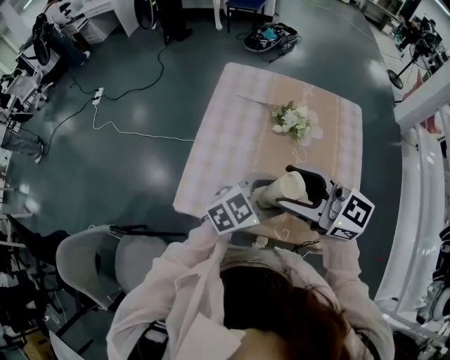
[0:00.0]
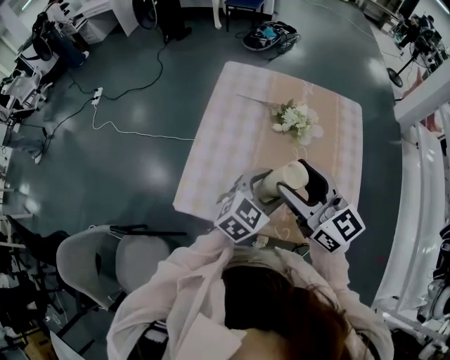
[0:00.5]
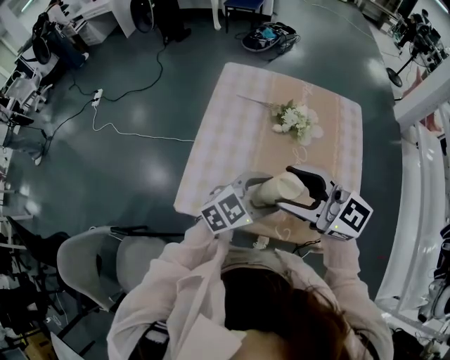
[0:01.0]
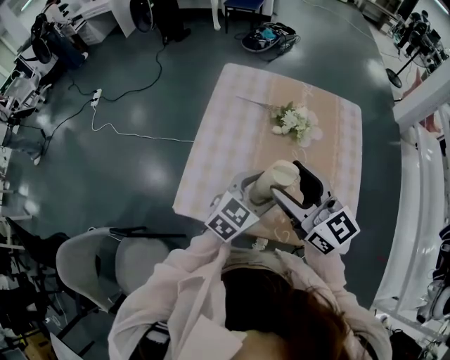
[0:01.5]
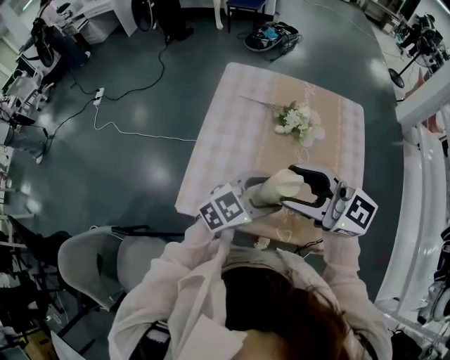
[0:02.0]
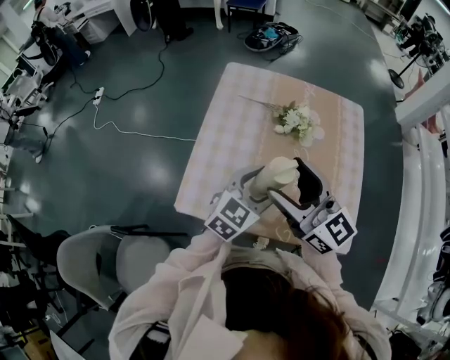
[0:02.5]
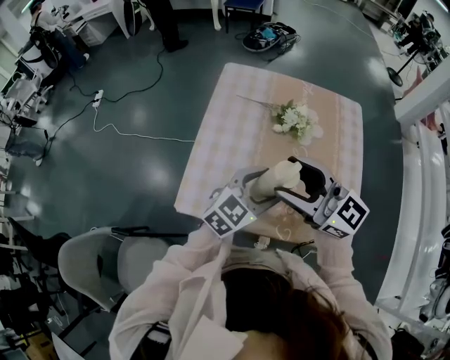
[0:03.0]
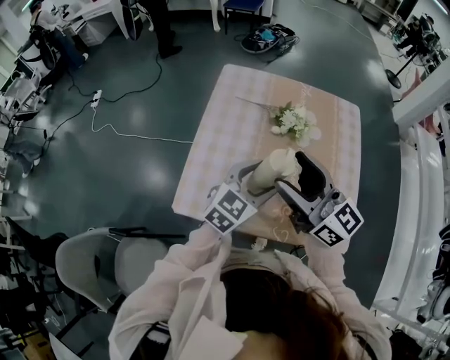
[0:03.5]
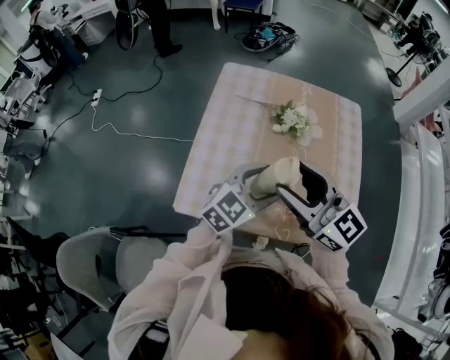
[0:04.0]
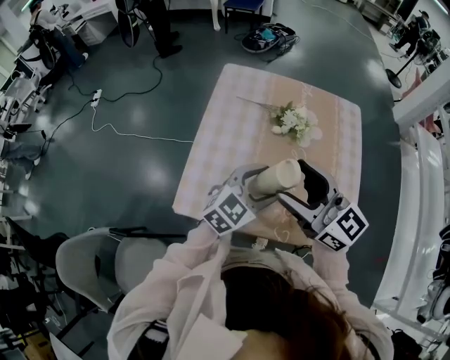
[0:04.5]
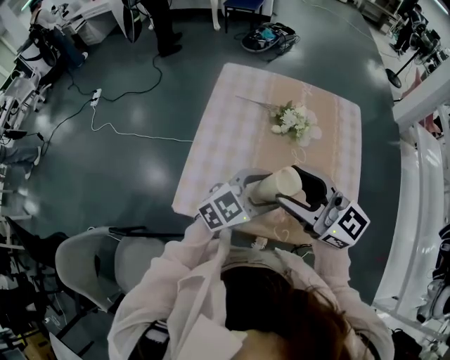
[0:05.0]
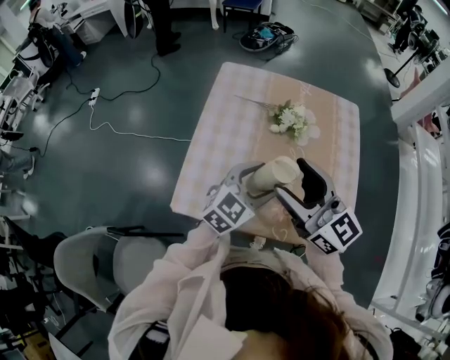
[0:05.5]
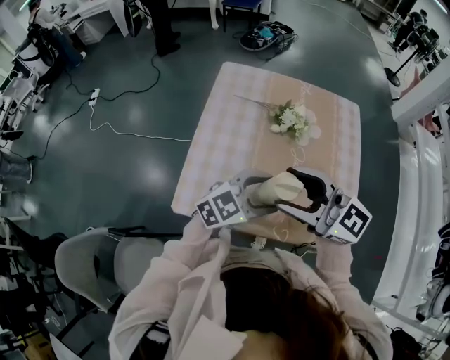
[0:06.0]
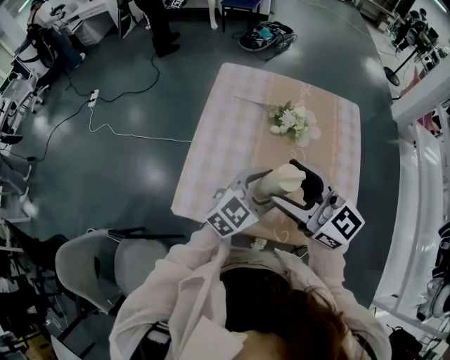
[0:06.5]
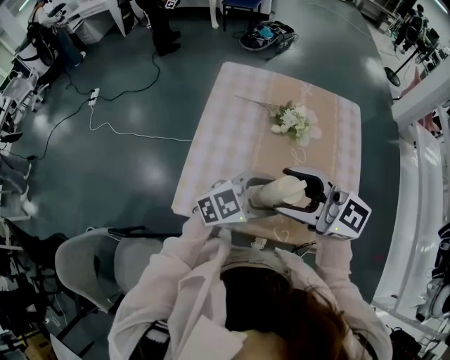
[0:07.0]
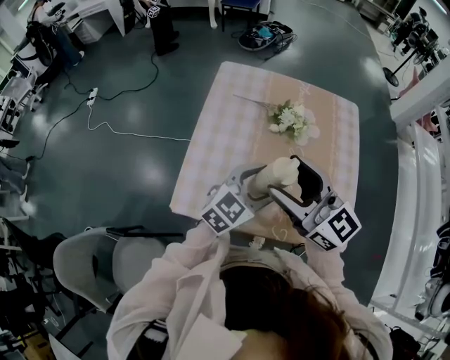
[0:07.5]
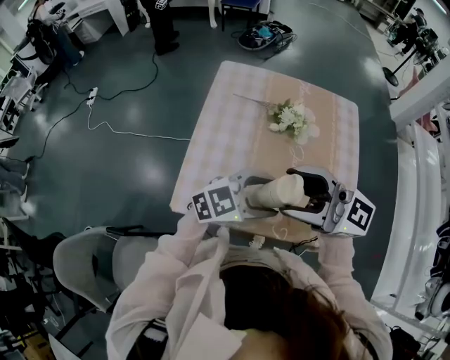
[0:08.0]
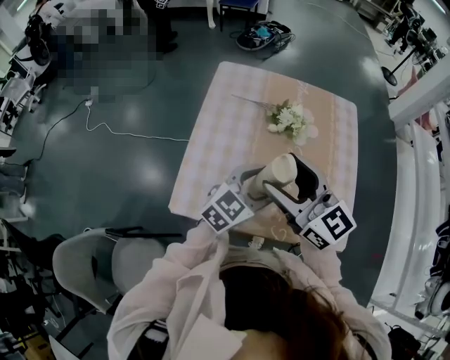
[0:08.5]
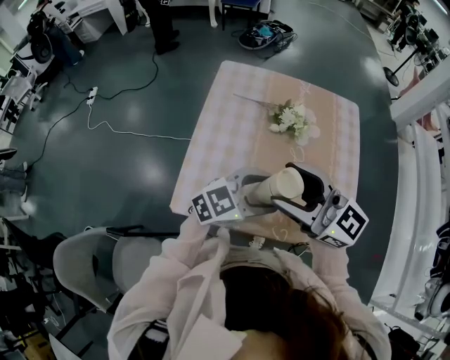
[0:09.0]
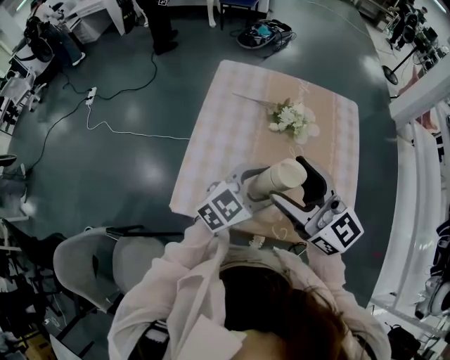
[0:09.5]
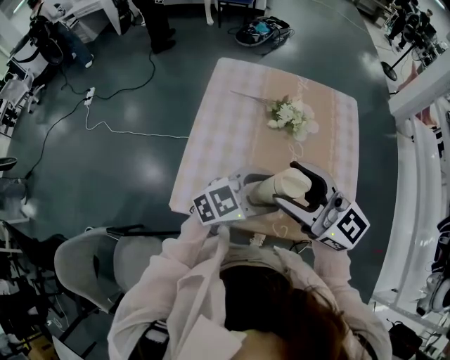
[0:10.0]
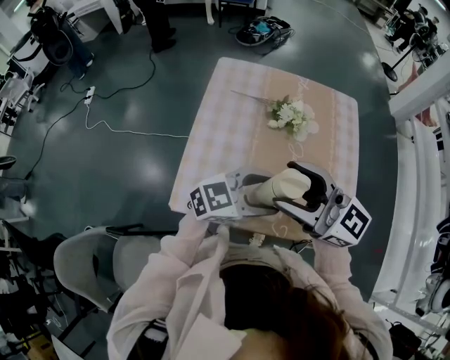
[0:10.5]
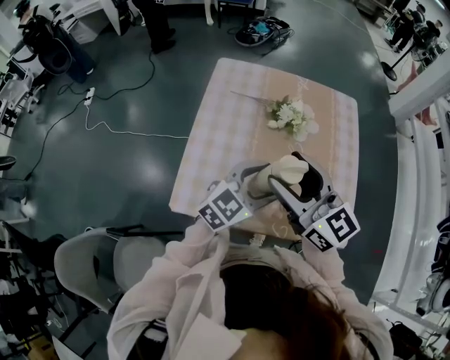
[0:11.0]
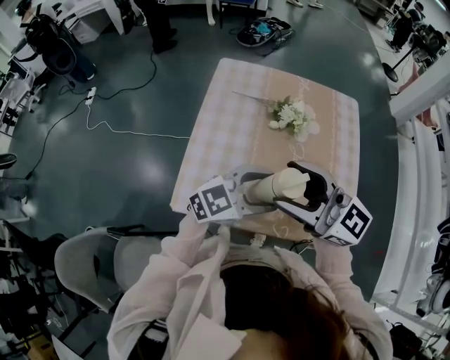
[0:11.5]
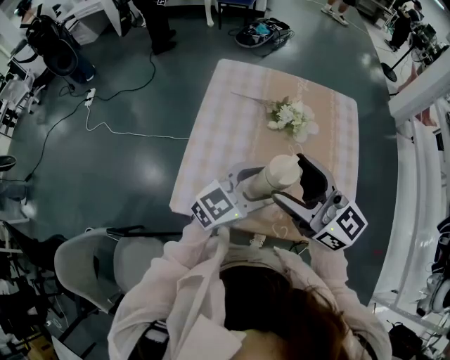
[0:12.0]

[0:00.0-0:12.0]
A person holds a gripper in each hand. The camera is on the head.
0:02.0 to 0:04.0: The right gripper changes its angle by about 20 degrees.
0:04.0 to 0:06.0: The grippers make only small movements.
0:06.0 to 0:08.0: The grippers stay close to where they were, moving slightly.
0:10.0 to 0:12.0: The grippers move only a little.

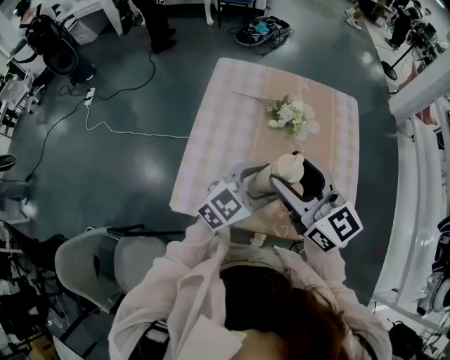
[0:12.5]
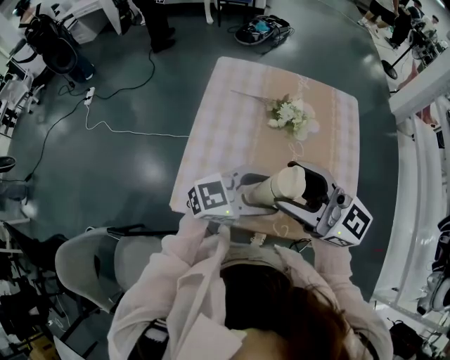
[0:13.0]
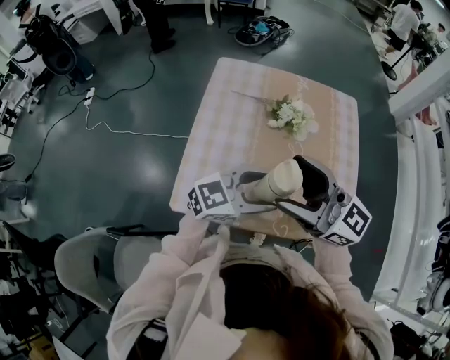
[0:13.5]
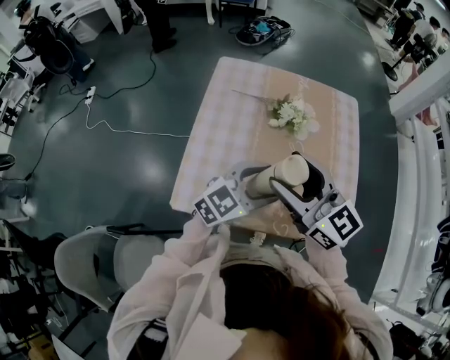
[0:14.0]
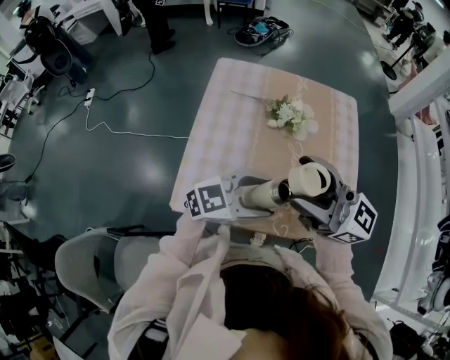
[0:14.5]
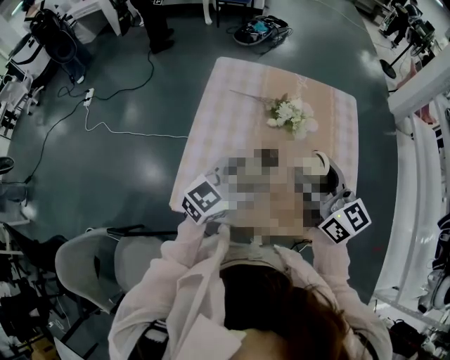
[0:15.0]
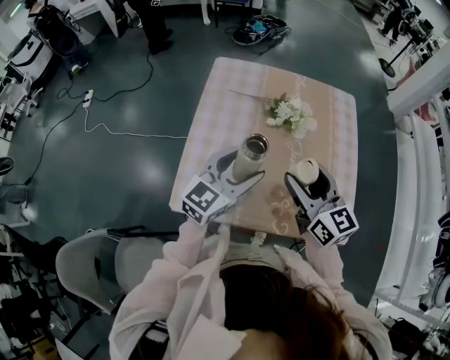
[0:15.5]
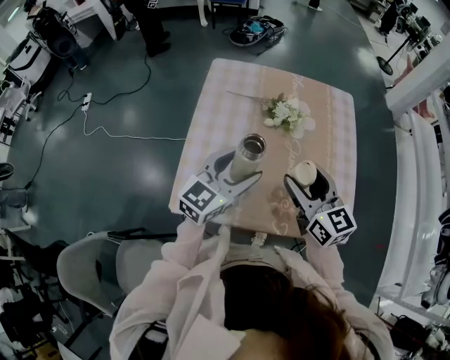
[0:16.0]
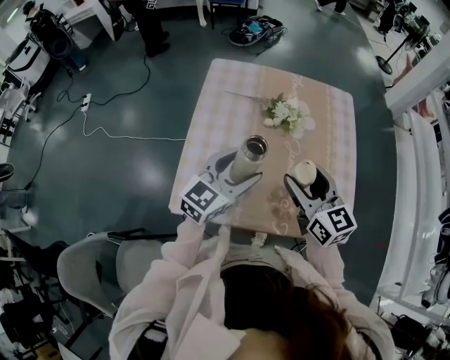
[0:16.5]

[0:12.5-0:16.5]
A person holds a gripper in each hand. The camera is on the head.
0:12.5 to 0:14.5: The left gripper changes place by approximately 5 cm, and turns by approximately 20 degrees. The right gripper shifts by approximately 5 cm, and turns by approximately 30 degrees.
0:14.5 to 0:16.5: The left gripper shifts by some 10 cm, and turns by roughly 30 degrees. The right gripper heads downward, covering roughly 15 cm, and swivels about 40 degrees.

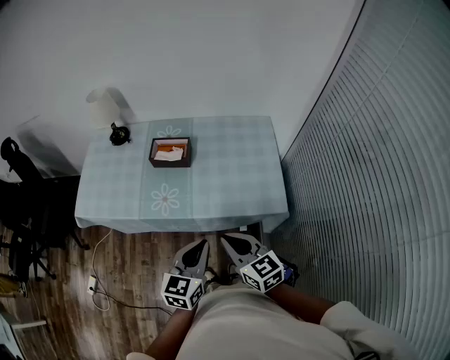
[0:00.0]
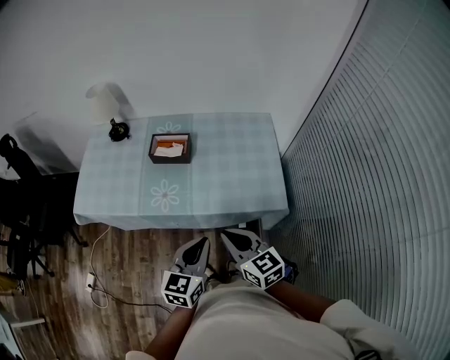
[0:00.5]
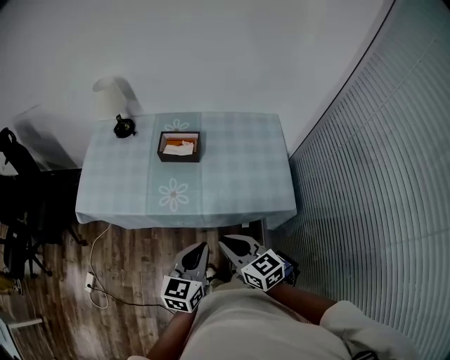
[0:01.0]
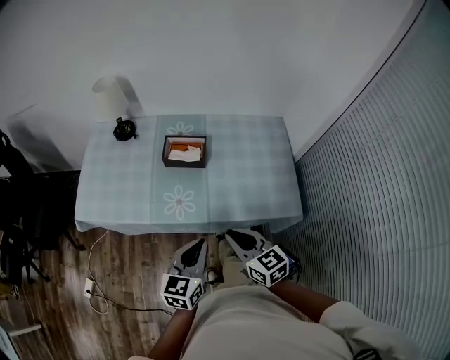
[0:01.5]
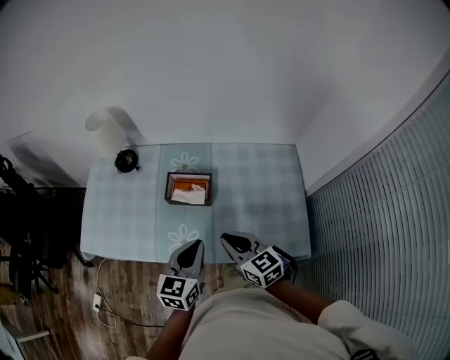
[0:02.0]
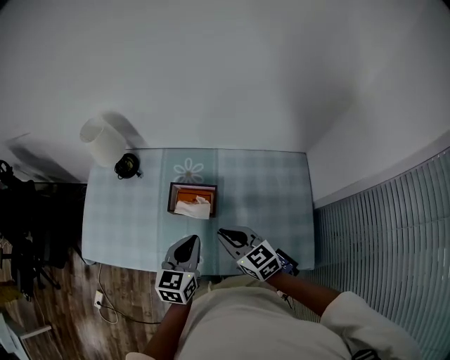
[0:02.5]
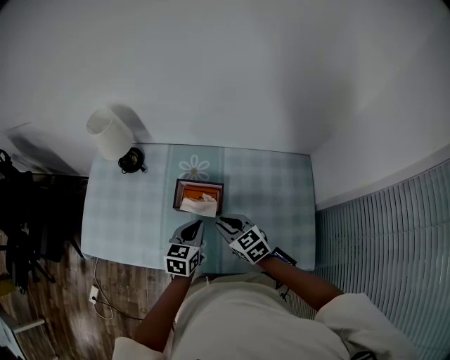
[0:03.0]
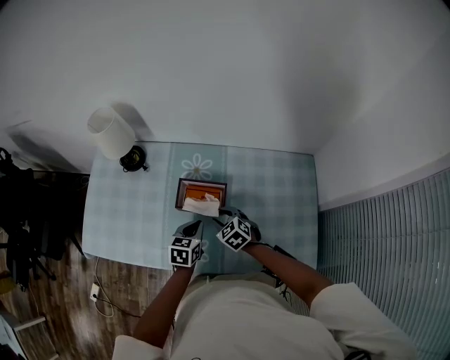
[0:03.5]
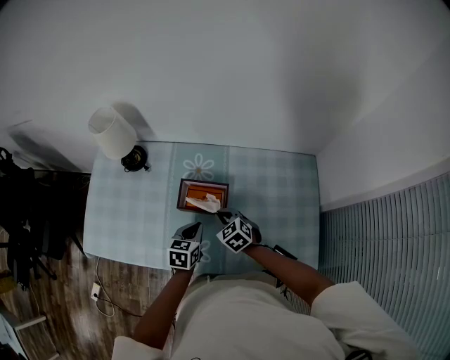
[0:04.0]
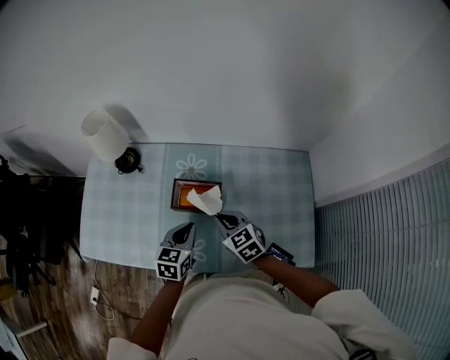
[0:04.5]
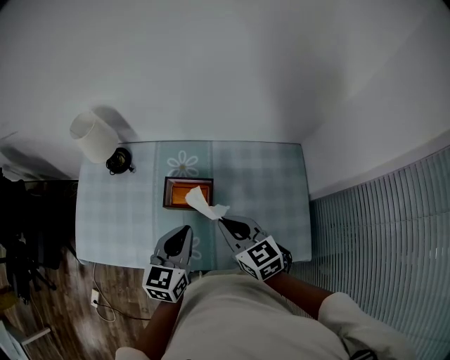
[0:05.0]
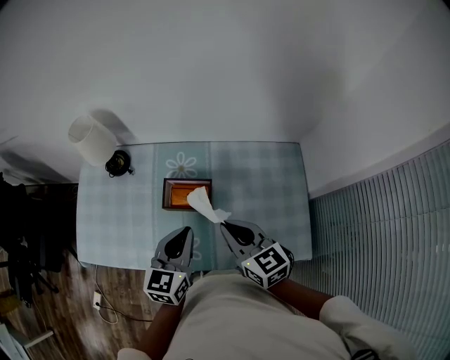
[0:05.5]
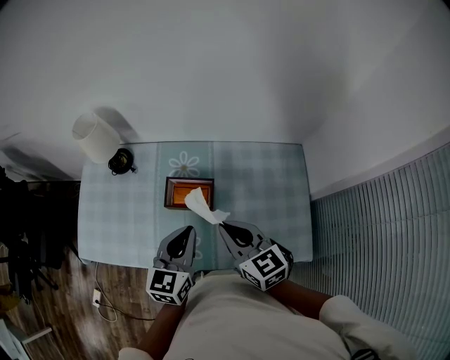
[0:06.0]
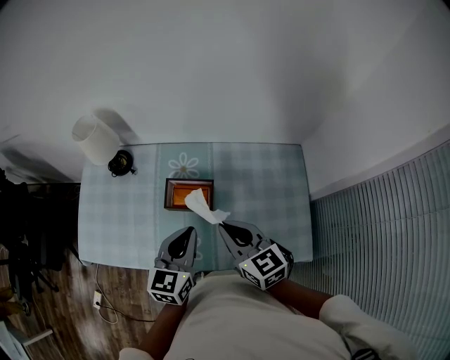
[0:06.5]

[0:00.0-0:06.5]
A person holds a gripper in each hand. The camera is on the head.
0:00.0 to 0:02.0: Both grippers travel together forward, approximately 25 cm.
0:02.0 to 0:04.5: Both grippers travel together forward and downward, roughly 15 cm. The right gripper changes its angle by some 20 degrees, and opens and closes again.
0:04.5 to 0:06.5: Both grippers travel together upward, approximately 15 cm. The right gripper rotates roughly 20 degrees.

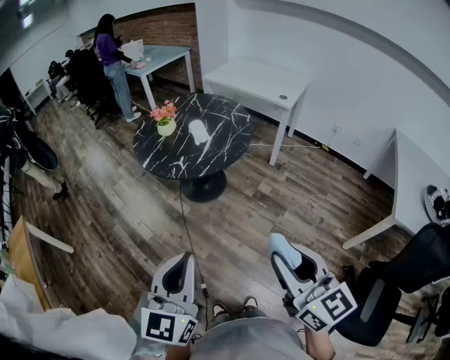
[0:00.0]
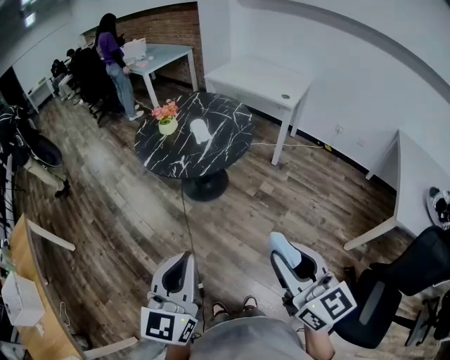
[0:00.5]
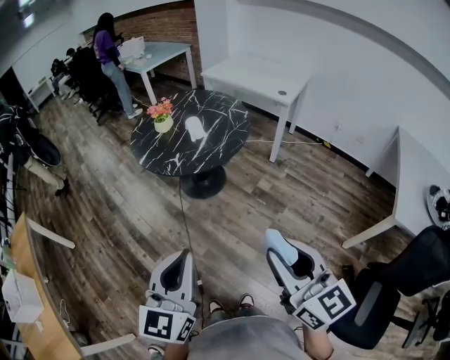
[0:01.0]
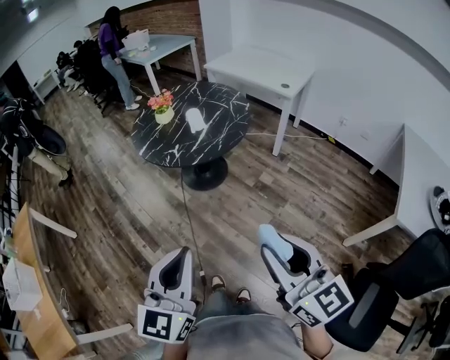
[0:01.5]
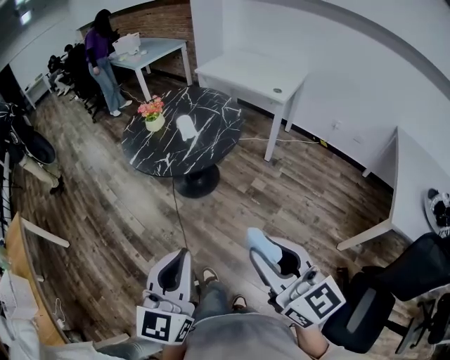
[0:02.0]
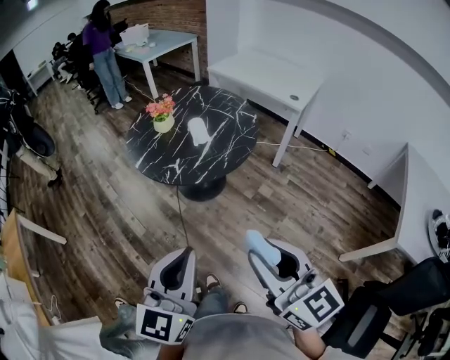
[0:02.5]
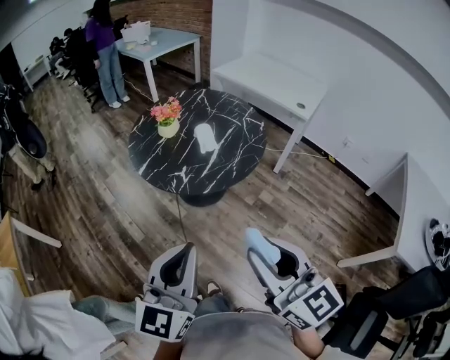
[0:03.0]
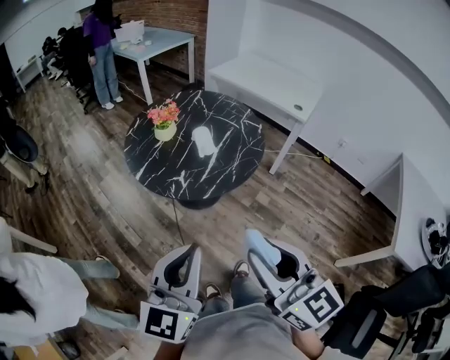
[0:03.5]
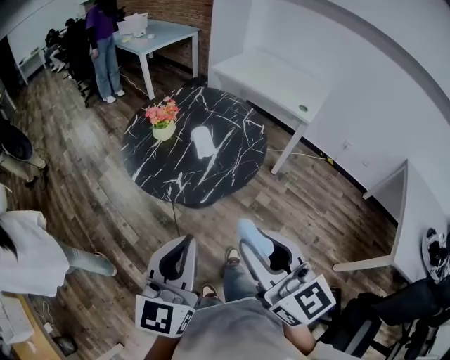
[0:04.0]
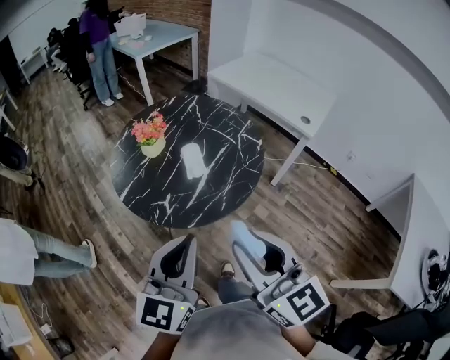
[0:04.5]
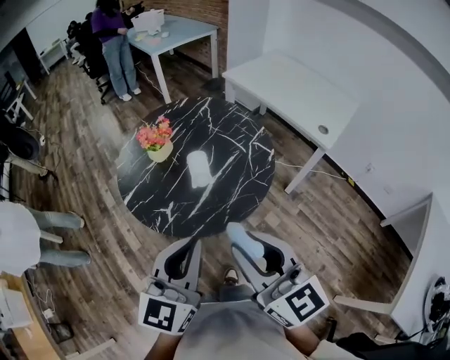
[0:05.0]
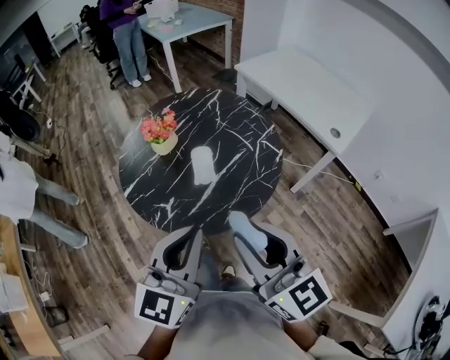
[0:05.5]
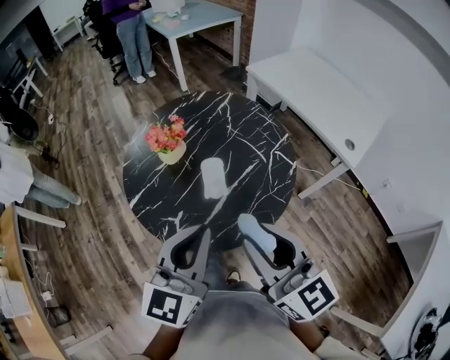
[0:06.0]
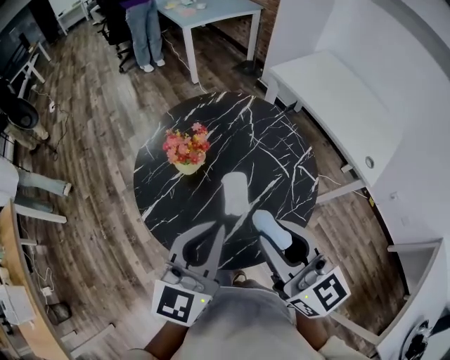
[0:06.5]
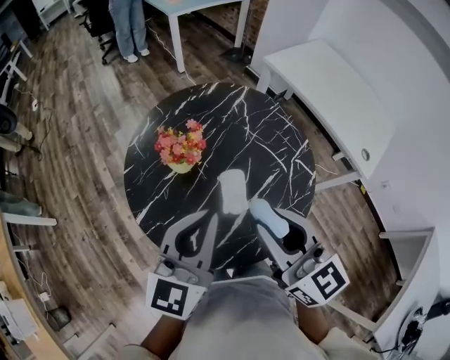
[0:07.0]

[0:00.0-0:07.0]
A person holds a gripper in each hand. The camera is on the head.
0:00.0 to 0:02.0: The left gripper goes approximately 10 cm to the right, while the right gripper shifts by about 5 cm.
0:02.0 to 0:03.5: The grippers both shift forward and to the left by some 20 cm.
0:03.5 to 0:05.0: Both grippers travel together forward and to the right, approximately 25 cm.
0:05.0 to 0:07.0: The two grippers go some 25 cm forward.
